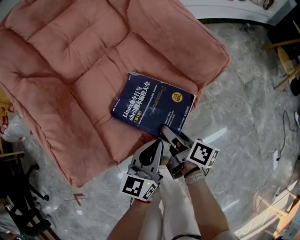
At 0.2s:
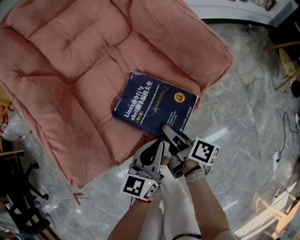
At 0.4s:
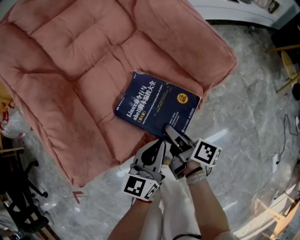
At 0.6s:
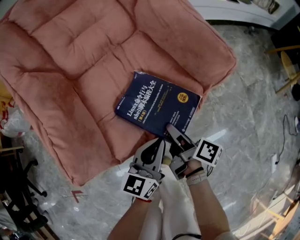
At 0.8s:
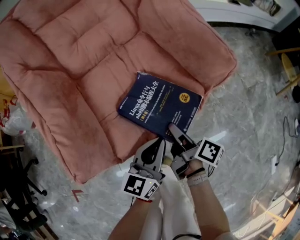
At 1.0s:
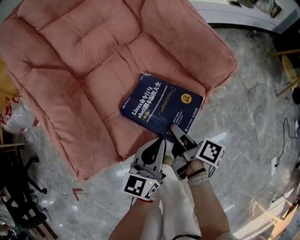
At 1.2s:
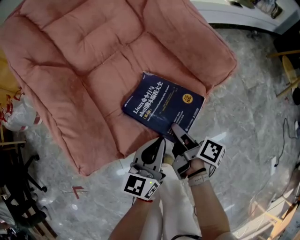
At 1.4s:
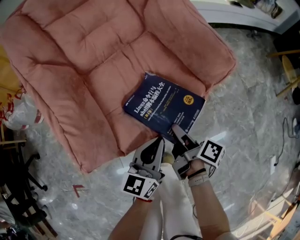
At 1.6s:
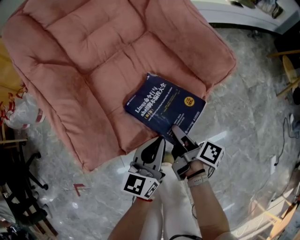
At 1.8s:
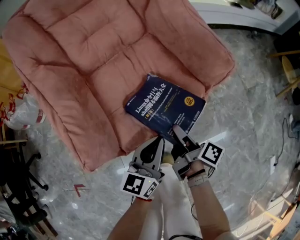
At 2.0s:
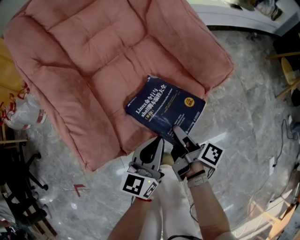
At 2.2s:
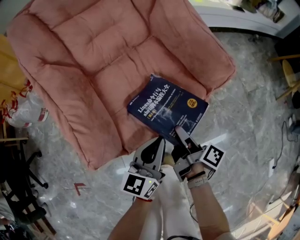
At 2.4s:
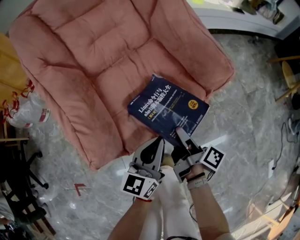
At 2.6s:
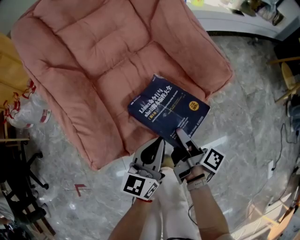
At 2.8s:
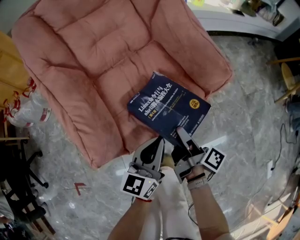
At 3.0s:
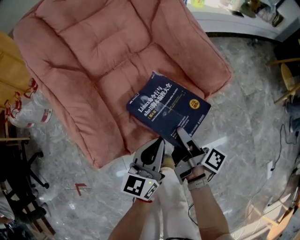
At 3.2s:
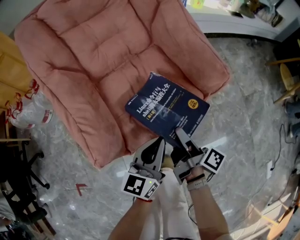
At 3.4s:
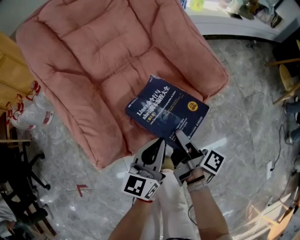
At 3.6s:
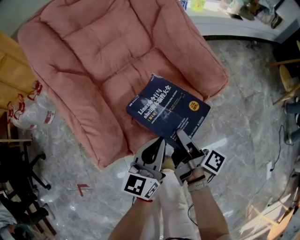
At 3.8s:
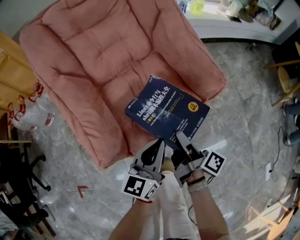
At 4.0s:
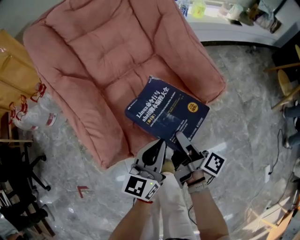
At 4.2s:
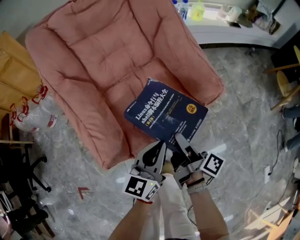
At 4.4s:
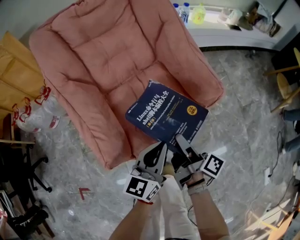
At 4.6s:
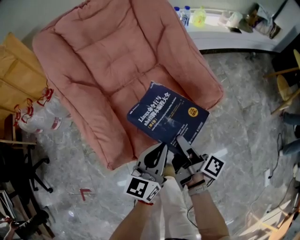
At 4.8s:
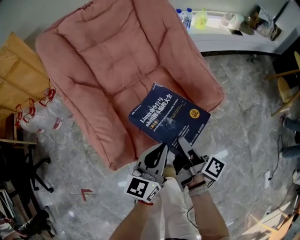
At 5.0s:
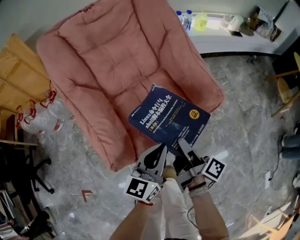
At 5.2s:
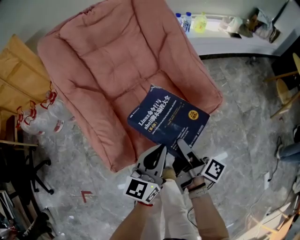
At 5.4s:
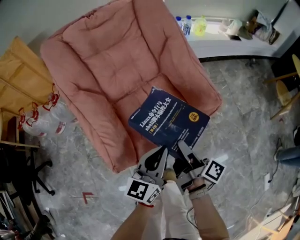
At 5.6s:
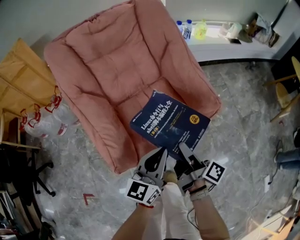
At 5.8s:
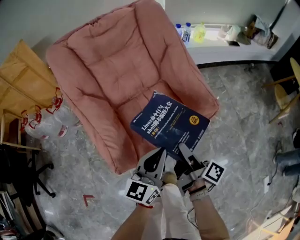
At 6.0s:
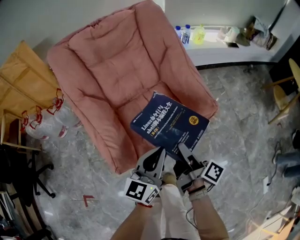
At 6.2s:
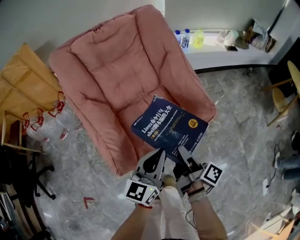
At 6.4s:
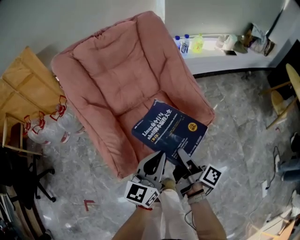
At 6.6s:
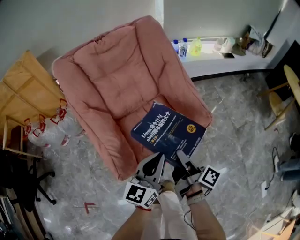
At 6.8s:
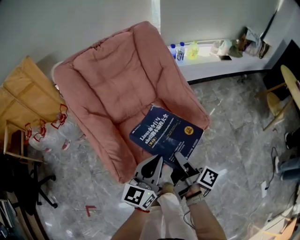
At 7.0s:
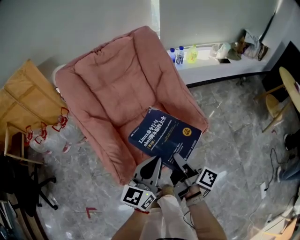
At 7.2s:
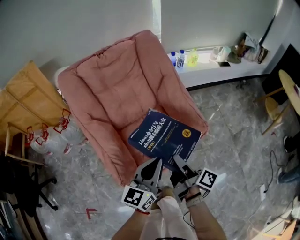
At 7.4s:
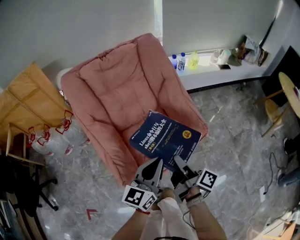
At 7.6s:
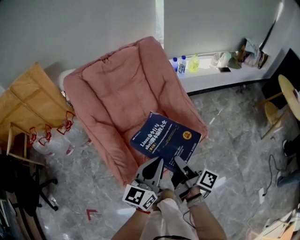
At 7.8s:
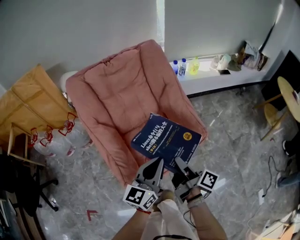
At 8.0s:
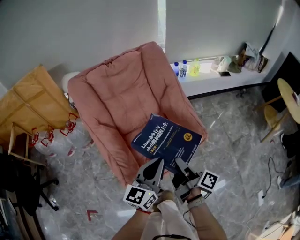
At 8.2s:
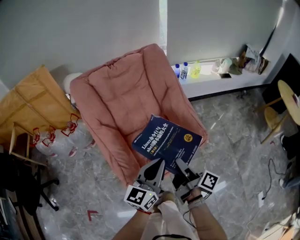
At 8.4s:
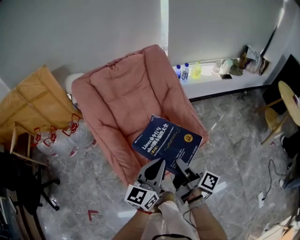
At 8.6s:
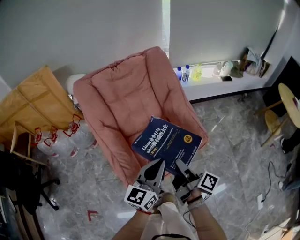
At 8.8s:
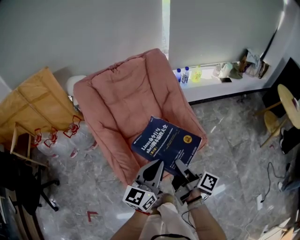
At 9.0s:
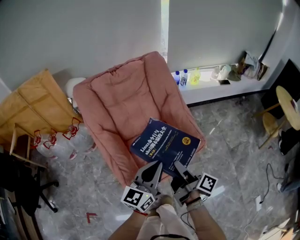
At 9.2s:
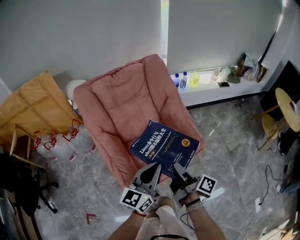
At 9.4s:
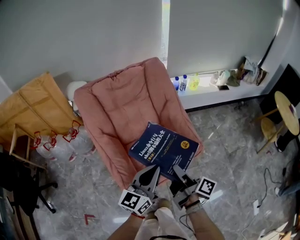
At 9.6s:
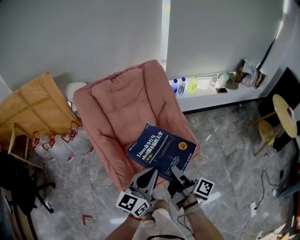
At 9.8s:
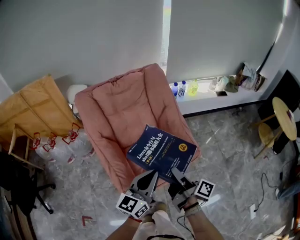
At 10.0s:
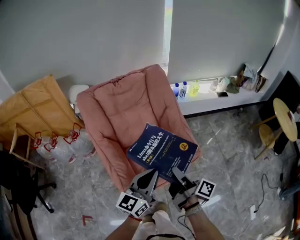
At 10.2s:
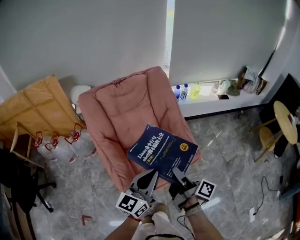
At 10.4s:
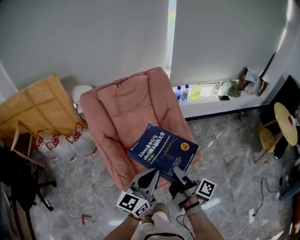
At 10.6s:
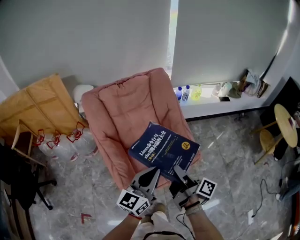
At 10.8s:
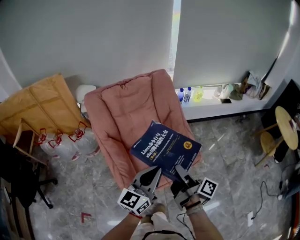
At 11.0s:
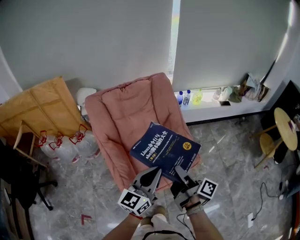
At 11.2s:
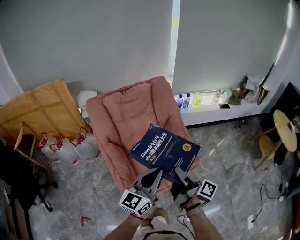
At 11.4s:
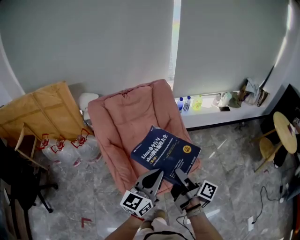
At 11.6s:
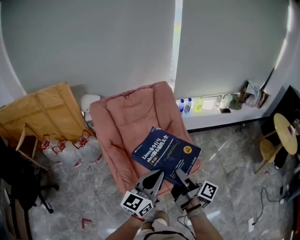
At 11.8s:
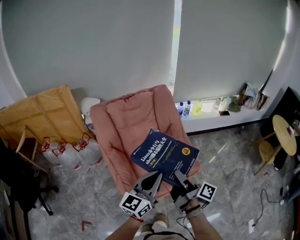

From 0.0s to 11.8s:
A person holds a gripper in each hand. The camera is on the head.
From 0.0s to 1.4s: The right gripper closes.
From 1.4s to 3.0s: Both grippers travel together upward, about 5 cm.
From 3.0s to 4.4s: Both grippers travel together upward, roughly 5 cm.
From 4.4s to 6.0s: Both grippers move upward, some 5 cm.
From 6.0s to 7.4s: Both grippers move upward, roughly 10 cm.
From 7.4s to 8.8s: The right gripper changes place by about 5 cm. Meanwhile the left gripper goes about 5 cm upward.
From 8.8s to 10.4s: Both grippers travel together upward, roughly 5 cm.
From 10.4s to 11.8s: The right gripper goes some 5 cm upward.

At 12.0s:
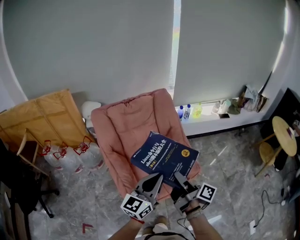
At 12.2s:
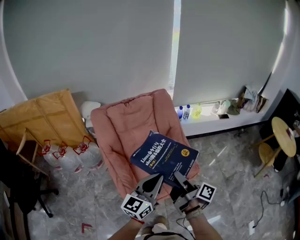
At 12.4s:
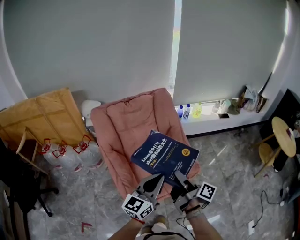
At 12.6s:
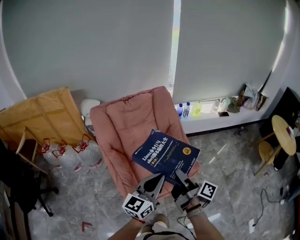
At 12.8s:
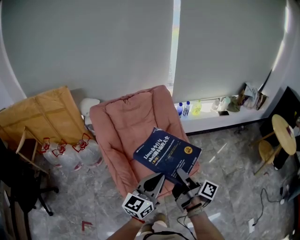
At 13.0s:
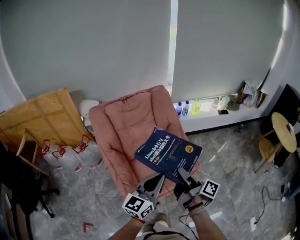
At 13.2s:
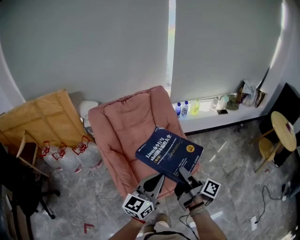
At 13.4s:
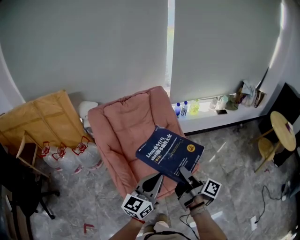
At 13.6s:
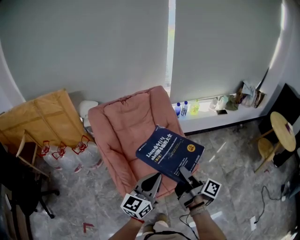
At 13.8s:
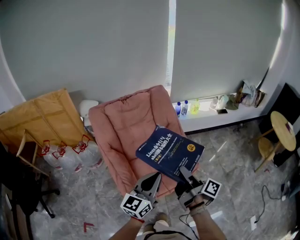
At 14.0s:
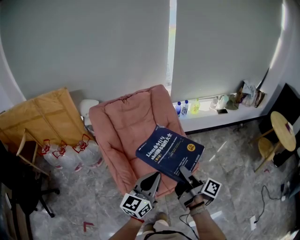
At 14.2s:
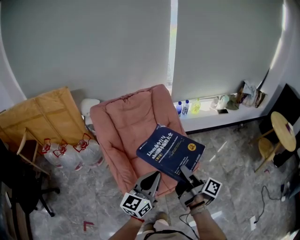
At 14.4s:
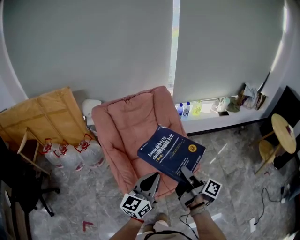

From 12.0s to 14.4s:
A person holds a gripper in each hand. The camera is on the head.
From 12.0s to 14.4s: The grippers stay close to where they were, moving slightly.

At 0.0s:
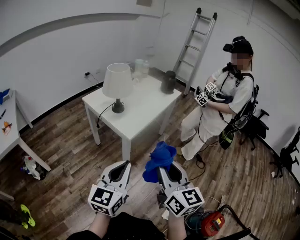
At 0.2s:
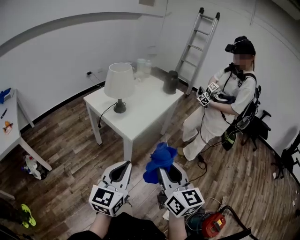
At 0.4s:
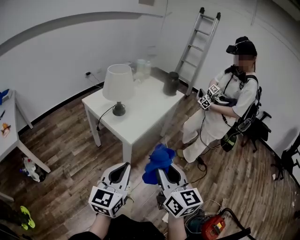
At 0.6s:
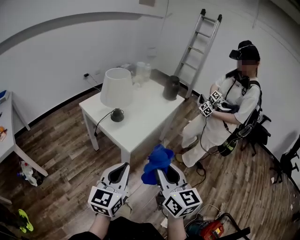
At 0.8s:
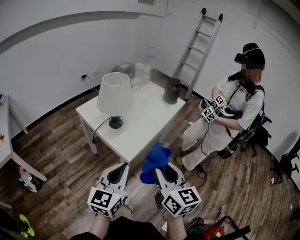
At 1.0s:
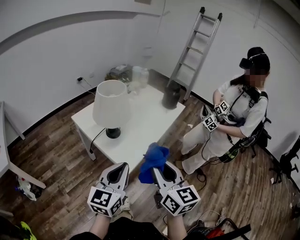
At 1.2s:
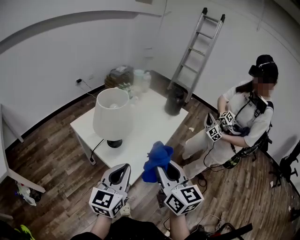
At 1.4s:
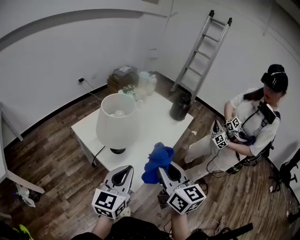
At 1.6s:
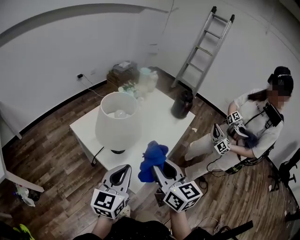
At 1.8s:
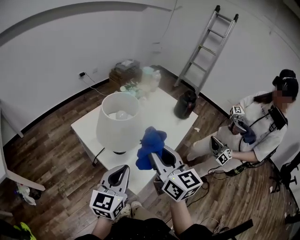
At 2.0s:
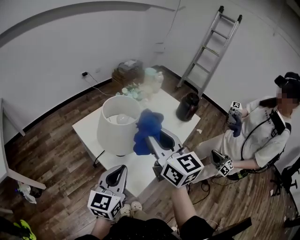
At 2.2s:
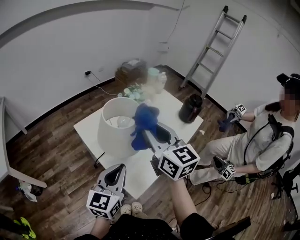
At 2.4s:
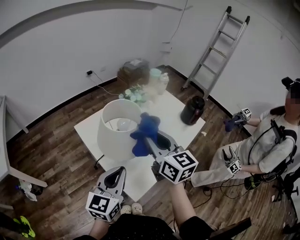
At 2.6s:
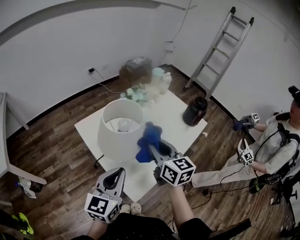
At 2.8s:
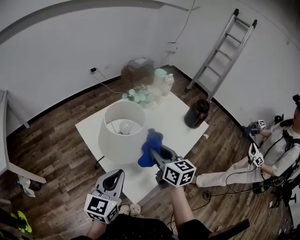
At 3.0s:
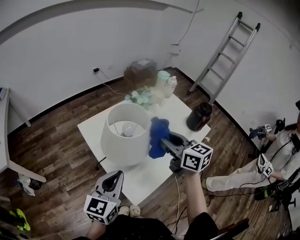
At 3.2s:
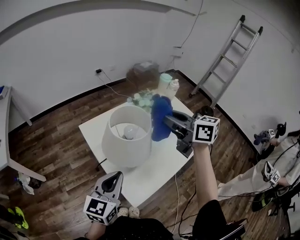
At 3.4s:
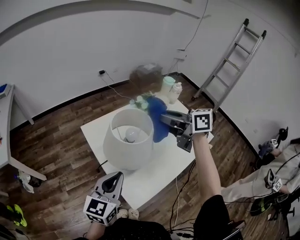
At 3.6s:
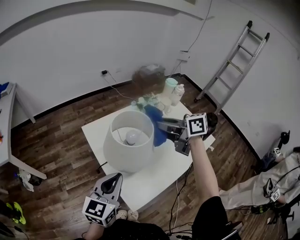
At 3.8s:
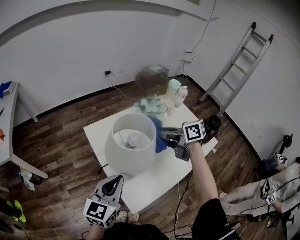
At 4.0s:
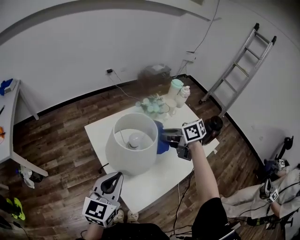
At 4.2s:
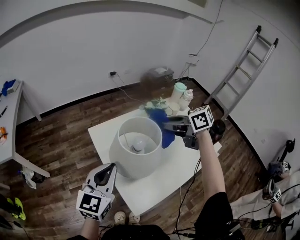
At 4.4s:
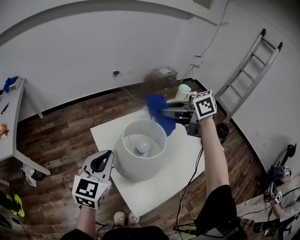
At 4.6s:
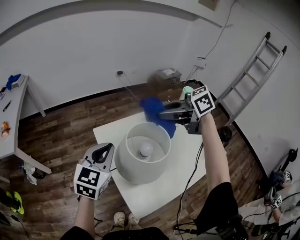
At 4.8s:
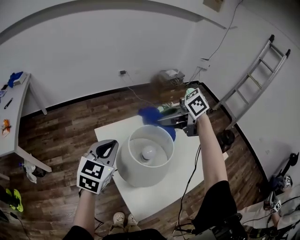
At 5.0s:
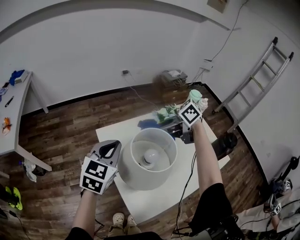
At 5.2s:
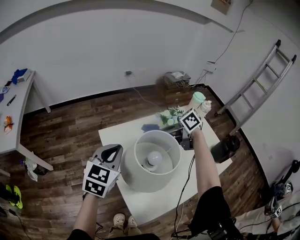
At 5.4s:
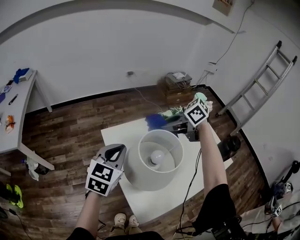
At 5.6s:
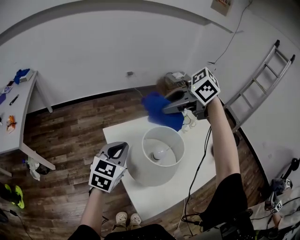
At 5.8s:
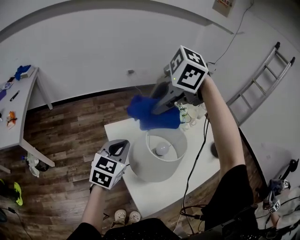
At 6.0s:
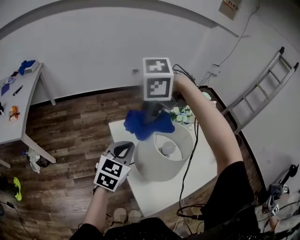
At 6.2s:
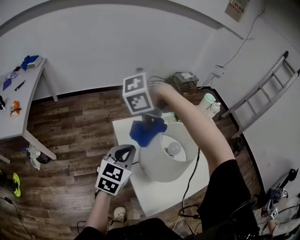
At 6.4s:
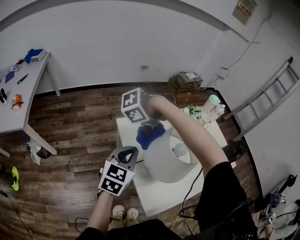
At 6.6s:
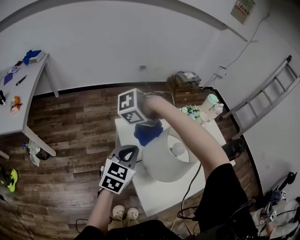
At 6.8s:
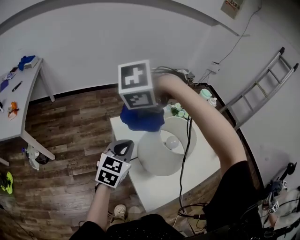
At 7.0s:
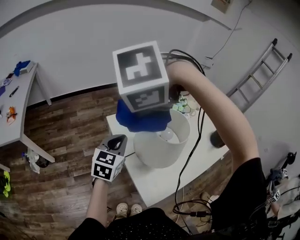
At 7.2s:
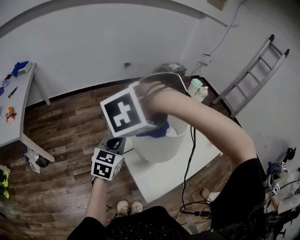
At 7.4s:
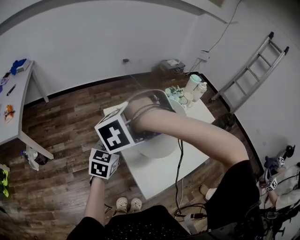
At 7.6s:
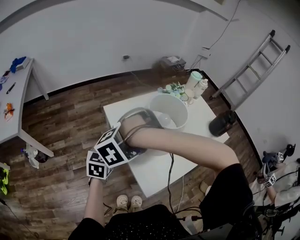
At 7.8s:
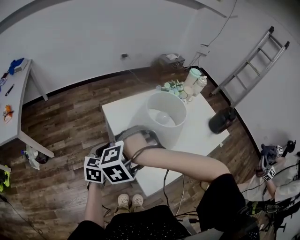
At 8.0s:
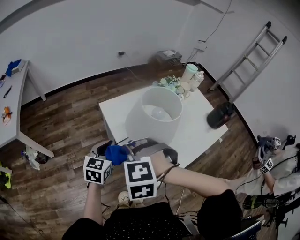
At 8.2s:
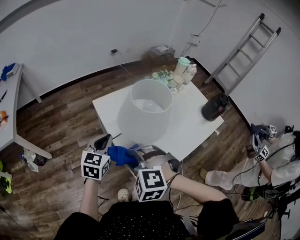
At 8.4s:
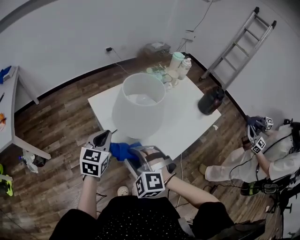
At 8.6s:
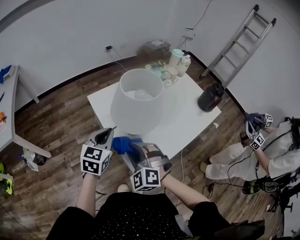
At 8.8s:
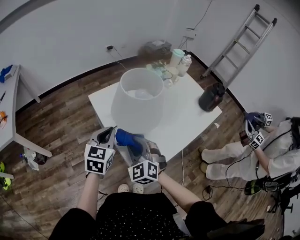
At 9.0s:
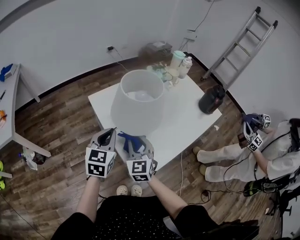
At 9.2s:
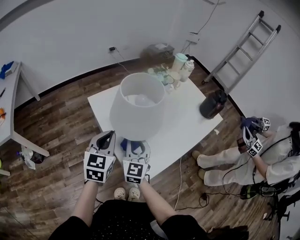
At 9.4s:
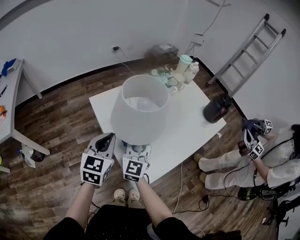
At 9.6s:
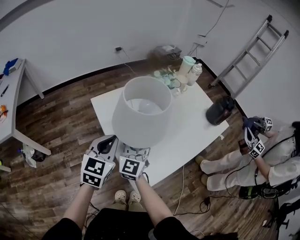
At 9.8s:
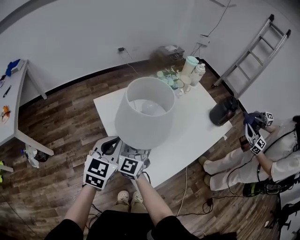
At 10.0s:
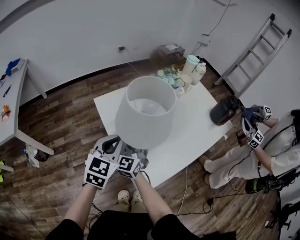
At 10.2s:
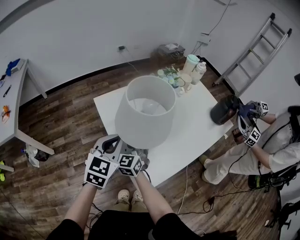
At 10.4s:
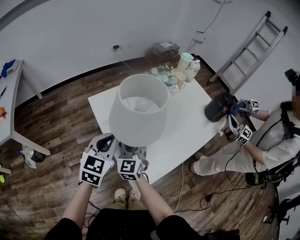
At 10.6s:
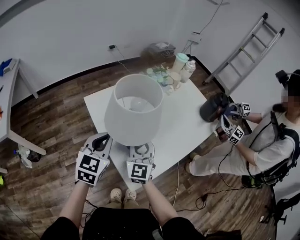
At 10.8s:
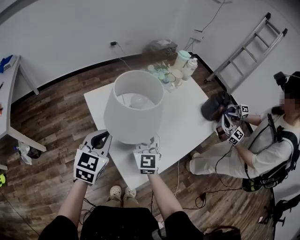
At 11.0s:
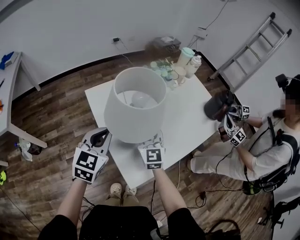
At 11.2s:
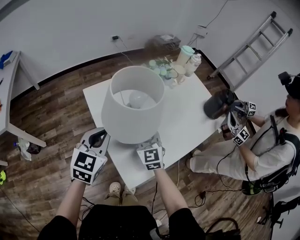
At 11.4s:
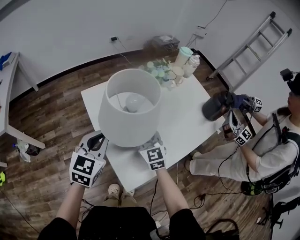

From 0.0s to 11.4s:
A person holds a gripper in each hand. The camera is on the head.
From 0.0s to 1.4s: The grippers both shift forward by about 35 cm.
From 1.4s to 2.8s: The right gripper travels forward by approximately 20 cm; the left gripper is displaced forward by about 10 cm.
From 2.8s to 4.2s: The left gripper moves approximately 10 cm. Meanwhile the right gripper goes up and down, approximately 15 cm each way, reversing 2 times, and swivels approximately 50 degrees.
From 4.2s to 5.6s: The left gripper heads forward, covering roughly 10 cm. Meanwhile the right gripper goes up and down, some 15 cm each way, reversing 2 times, and rotates roughly 40 degrees.
From 5.6s to 7.2s: The right gripper moves up and down over approximately 20 cm, changing direction 2 times, and rotates approximately 80 degrees, while the left gripper ends up about 5 cm from where it was.
From 7.2s to 8.6s: The right gripper is displaced downward by some 20 cm, and tips its fingers upward by about 40 degrees; the left gripper ends up roughly 10 cm from where it was.
From 8.6s to 10.0s: The right gripper heads forward, covering some 15 cm, and swivels some 50 degrees.
From 10.0s to 11.4s: The right gripper is displaced to the right by some 10 cm, and turns by some 30 degrees.
